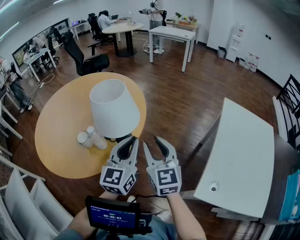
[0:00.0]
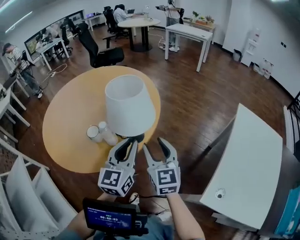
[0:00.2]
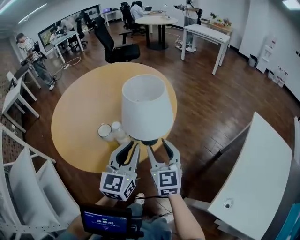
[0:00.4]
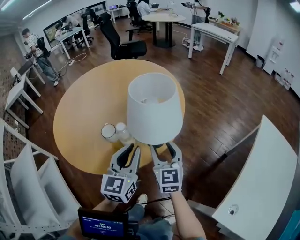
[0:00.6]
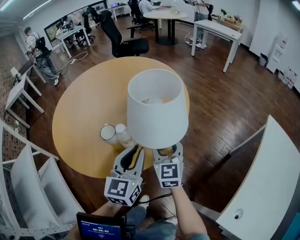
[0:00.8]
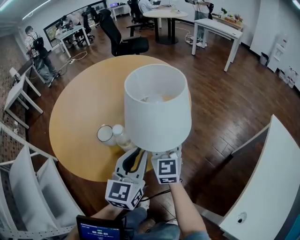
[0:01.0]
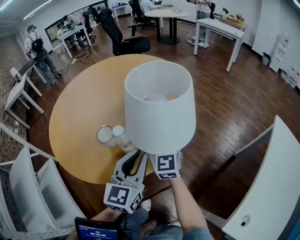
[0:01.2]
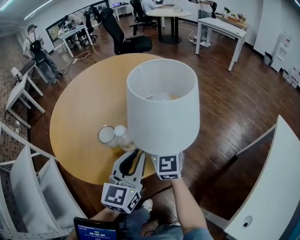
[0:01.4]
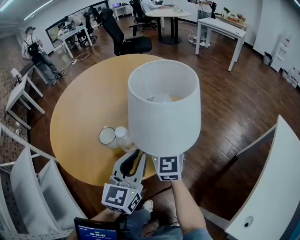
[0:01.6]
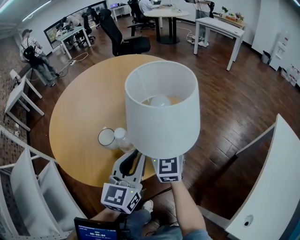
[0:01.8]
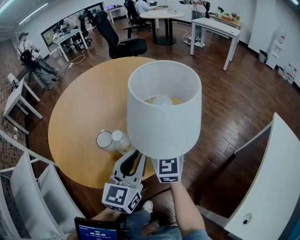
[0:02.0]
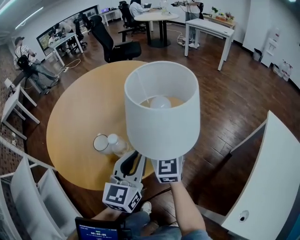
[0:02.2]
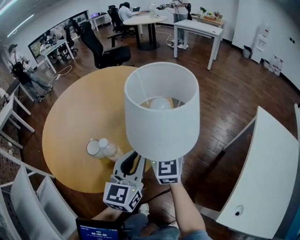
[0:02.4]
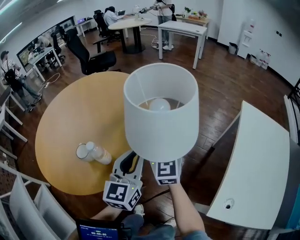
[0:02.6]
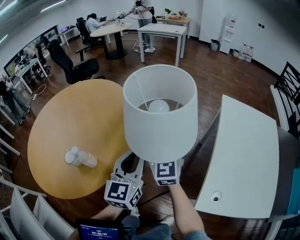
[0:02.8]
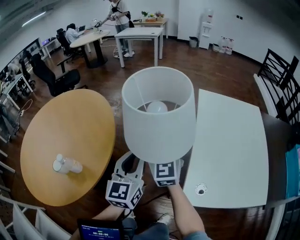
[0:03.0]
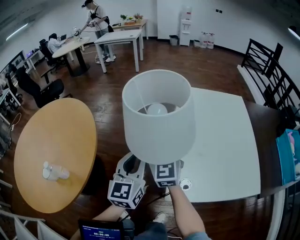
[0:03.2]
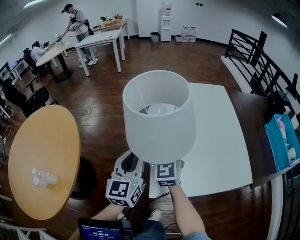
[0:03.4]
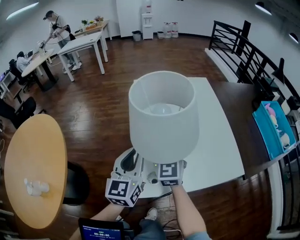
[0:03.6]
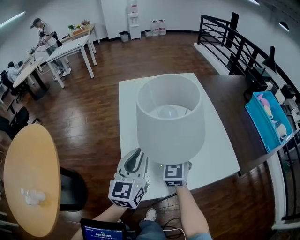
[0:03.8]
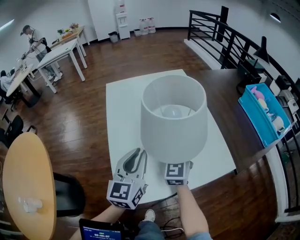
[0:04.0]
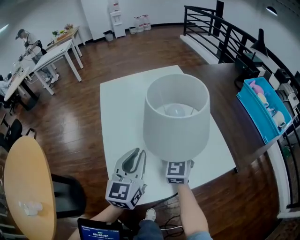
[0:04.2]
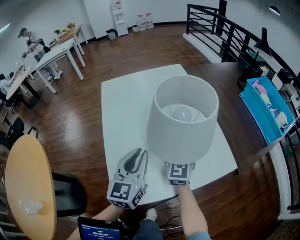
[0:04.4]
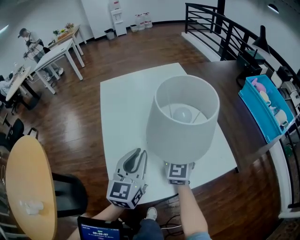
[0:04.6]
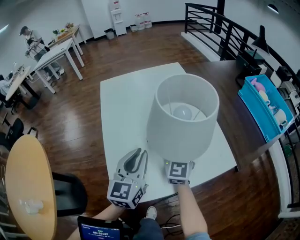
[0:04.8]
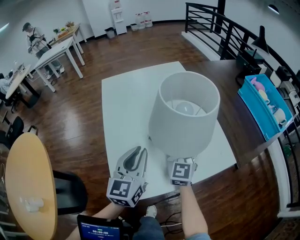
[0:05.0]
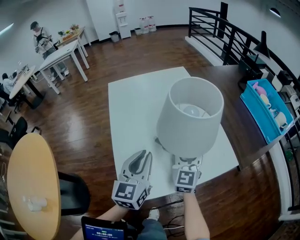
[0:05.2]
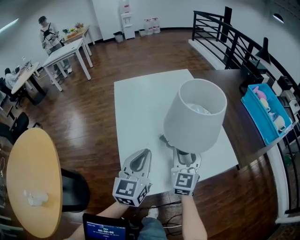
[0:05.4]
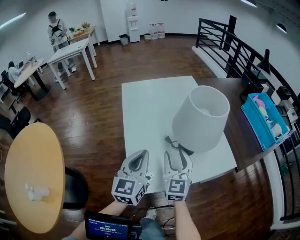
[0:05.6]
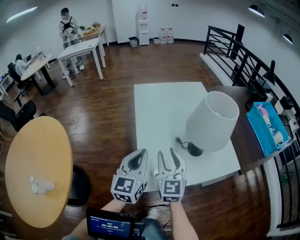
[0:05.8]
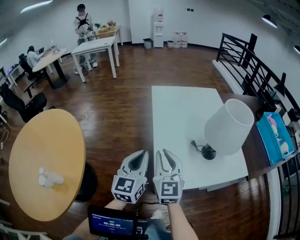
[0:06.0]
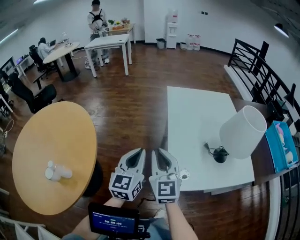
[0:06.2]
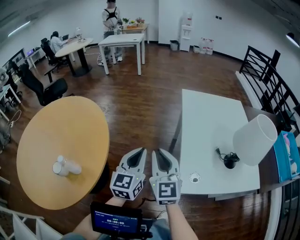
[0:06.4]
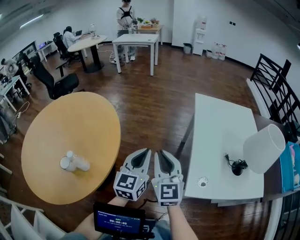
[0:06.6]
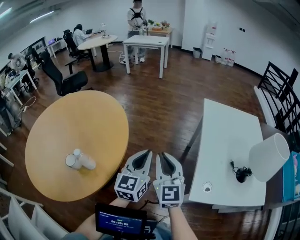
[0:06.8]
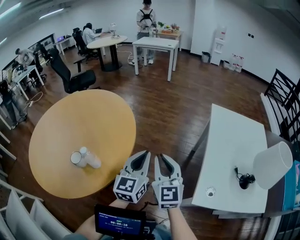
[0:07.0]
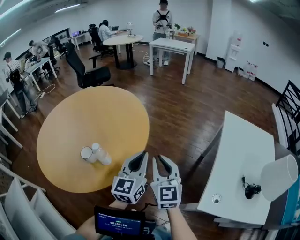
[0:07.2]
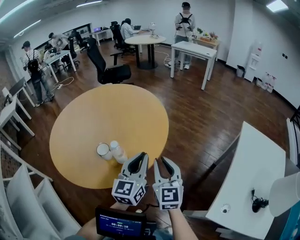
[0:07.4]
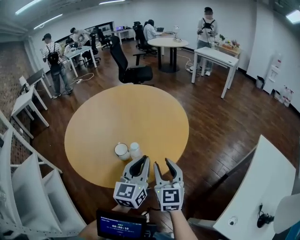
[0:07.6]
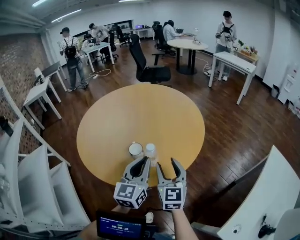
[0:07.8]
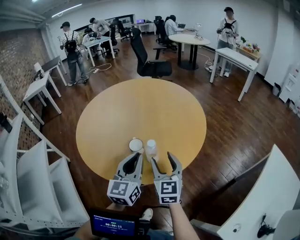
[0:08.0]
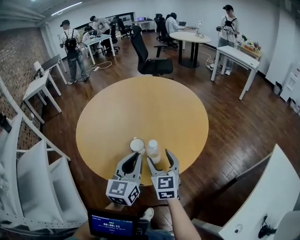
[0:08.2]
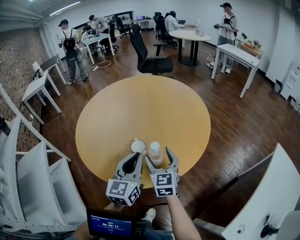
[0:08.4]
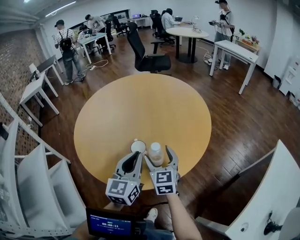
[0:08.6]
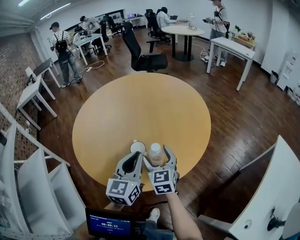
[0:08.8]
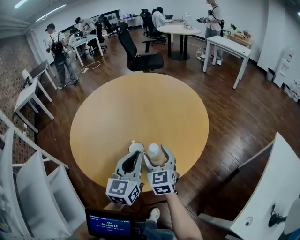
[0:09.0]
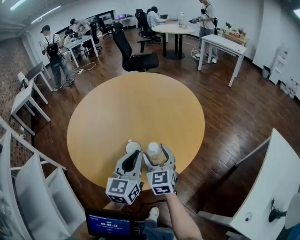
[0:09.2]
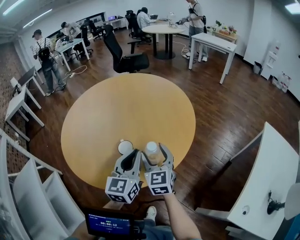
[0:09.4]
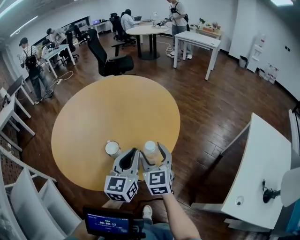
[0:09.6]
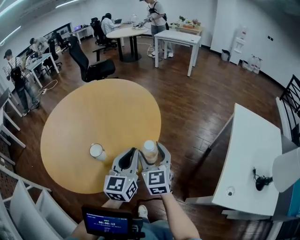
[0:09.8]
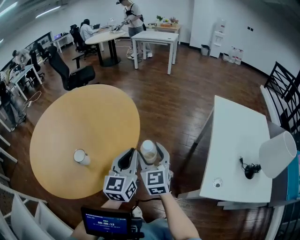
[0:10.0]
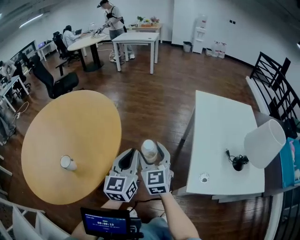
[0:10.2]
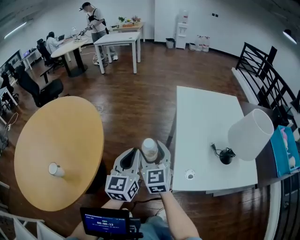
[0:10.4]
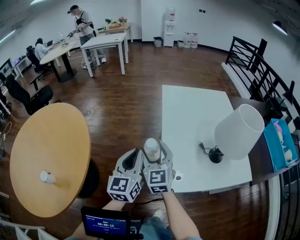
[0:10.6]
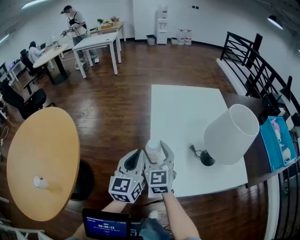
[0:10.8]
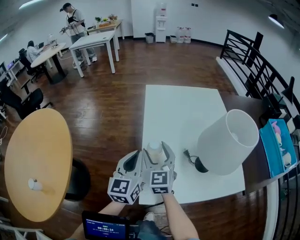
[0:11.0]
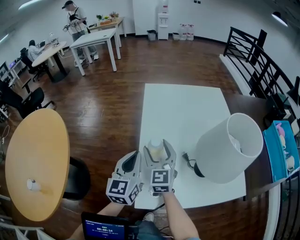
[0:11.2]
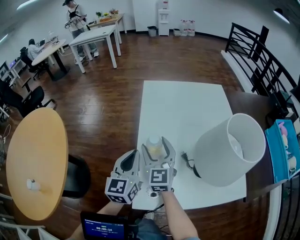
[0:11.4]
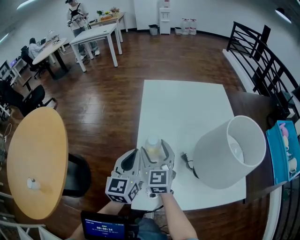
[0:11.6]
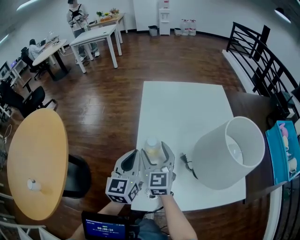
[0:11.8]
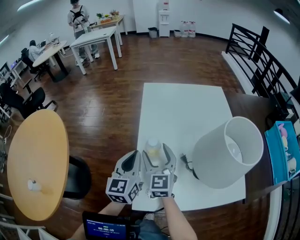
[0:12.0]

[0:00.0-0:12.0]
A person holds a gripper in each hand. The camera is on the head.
0:00.0 to 0:01.6: The right gripper is displaced forward, to the left and downward by approximately 25 cm; the left gripper is displaced to the left, downward and forward by approximately 20 cm.
0:01.6 to 0:03.0: The right gripper ends up some 35 cm from where it was, and swivels some 30 degrees; the left gripper ends up roughly 30 cm from where it was, and changes its angle by about 30 degrees.
0:03.0 to 0:04.4: The two grippers travel together, roughly 50 cm. The right gripper swivels some 40 degrees. The left gripper changes its angle by some 30 degrees.
0:04.4 to 0:06.0: The right gripper is displaced to the left, backward and upward by approximately 30 cm. The left gripper goes approximately 25 cm to the left and backward.
0:06.0 to 0:07.6: The two grippers travel together, approximately 50 cm. The right gripper swivels roughly 50 degrees. The left gripper swivels roughly 50 degrees.
0:07.6 to 0:09.0: The left gripper heads to the left and forward, covering some 15 cm, while the right gripper shifts about 20 cm to the left, forward and downward.
0:09.0 to 0:10.4: The two grippers travel together, approximately 40 cm. The right gripper rotates some 40 degrees; the left gripper rotates about 40 degrees.
0:10.4 to 0:12.0: The grippers both shift to the right and forward by about 30 cm.

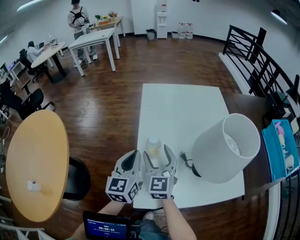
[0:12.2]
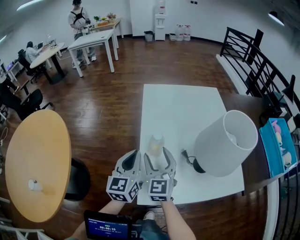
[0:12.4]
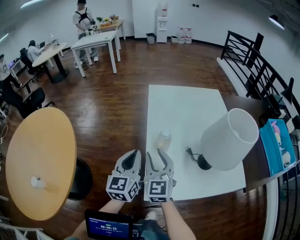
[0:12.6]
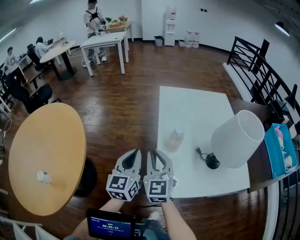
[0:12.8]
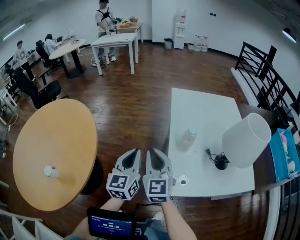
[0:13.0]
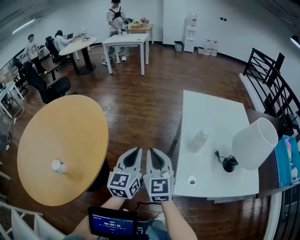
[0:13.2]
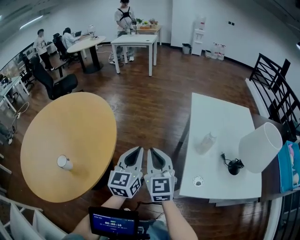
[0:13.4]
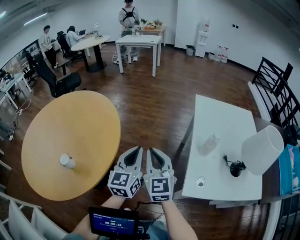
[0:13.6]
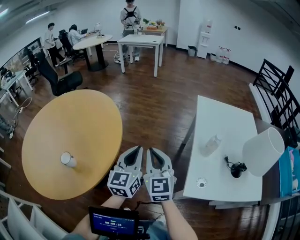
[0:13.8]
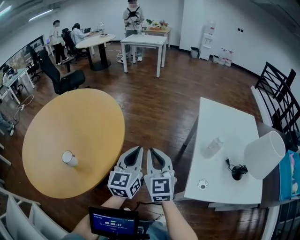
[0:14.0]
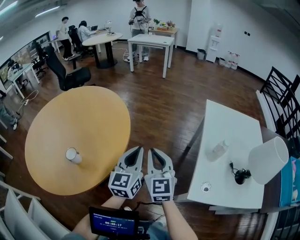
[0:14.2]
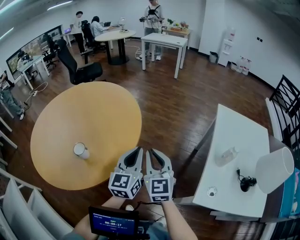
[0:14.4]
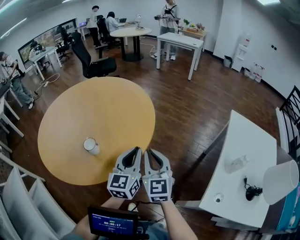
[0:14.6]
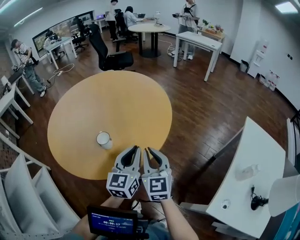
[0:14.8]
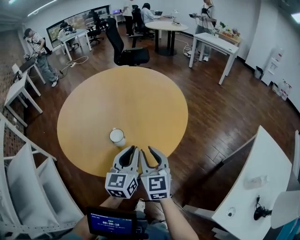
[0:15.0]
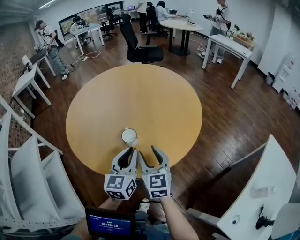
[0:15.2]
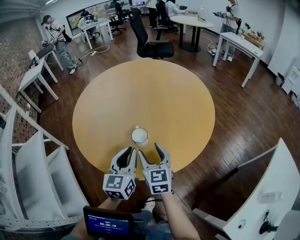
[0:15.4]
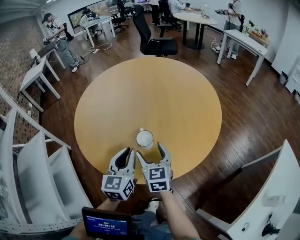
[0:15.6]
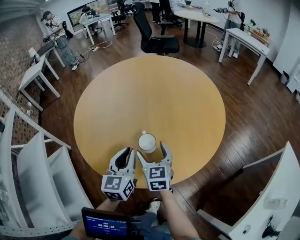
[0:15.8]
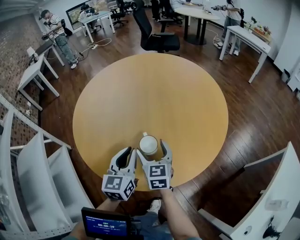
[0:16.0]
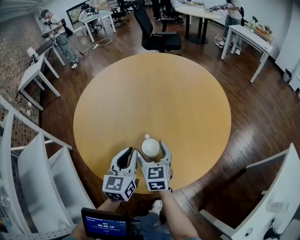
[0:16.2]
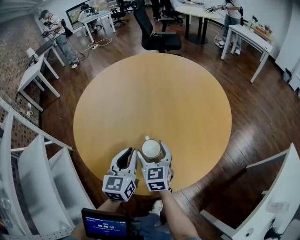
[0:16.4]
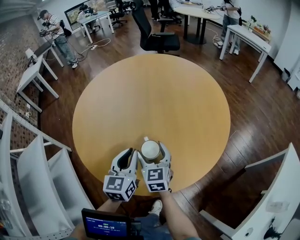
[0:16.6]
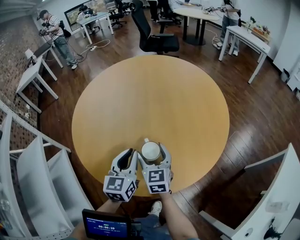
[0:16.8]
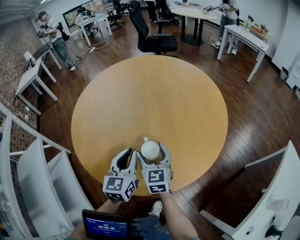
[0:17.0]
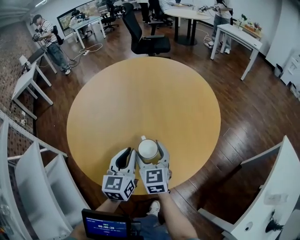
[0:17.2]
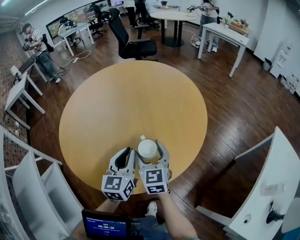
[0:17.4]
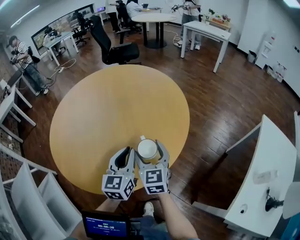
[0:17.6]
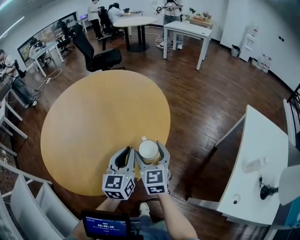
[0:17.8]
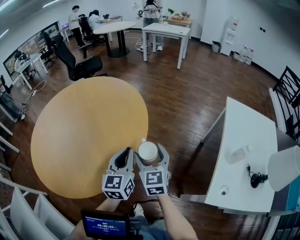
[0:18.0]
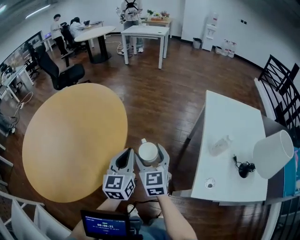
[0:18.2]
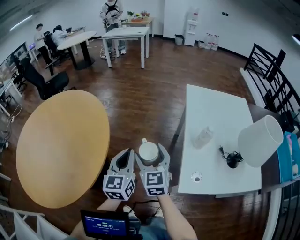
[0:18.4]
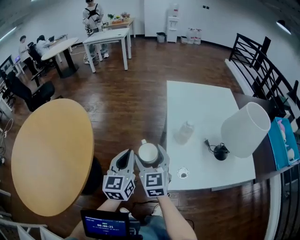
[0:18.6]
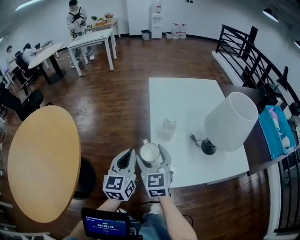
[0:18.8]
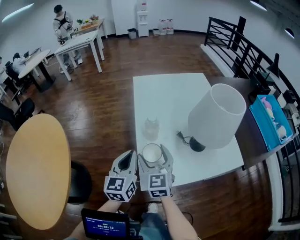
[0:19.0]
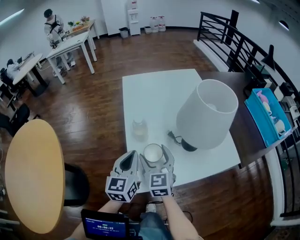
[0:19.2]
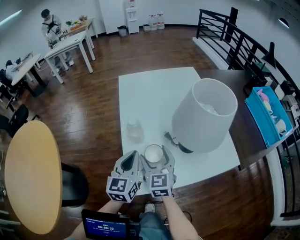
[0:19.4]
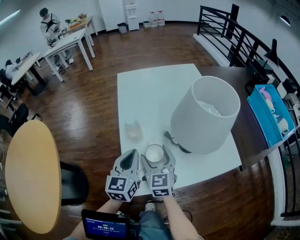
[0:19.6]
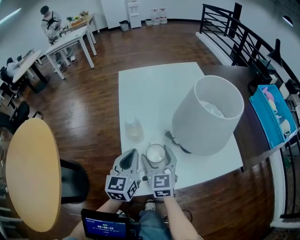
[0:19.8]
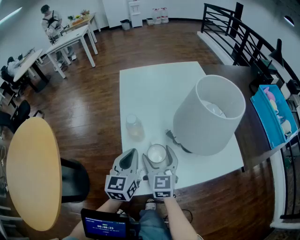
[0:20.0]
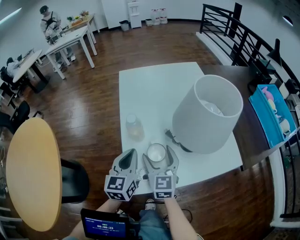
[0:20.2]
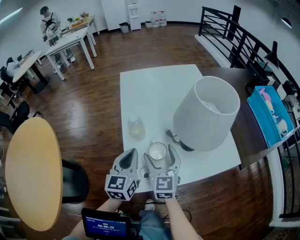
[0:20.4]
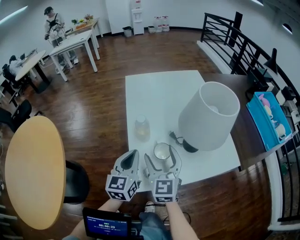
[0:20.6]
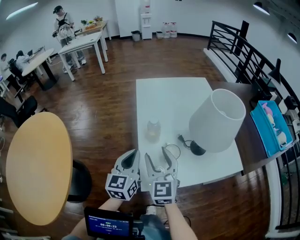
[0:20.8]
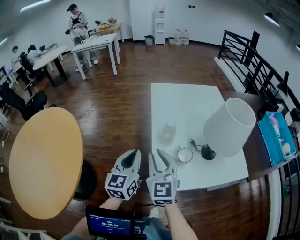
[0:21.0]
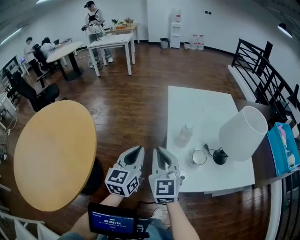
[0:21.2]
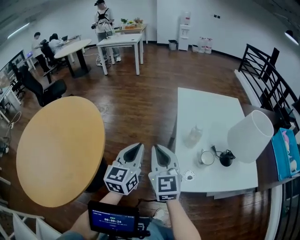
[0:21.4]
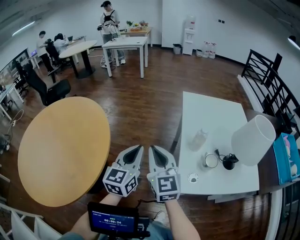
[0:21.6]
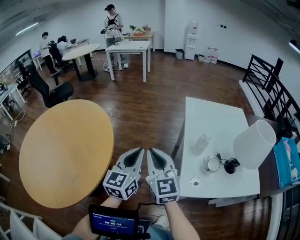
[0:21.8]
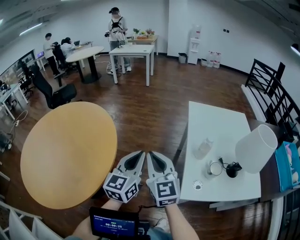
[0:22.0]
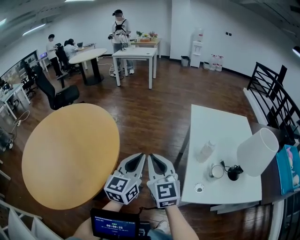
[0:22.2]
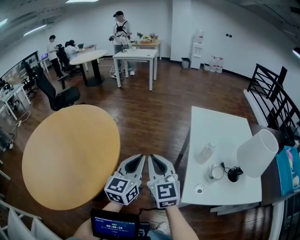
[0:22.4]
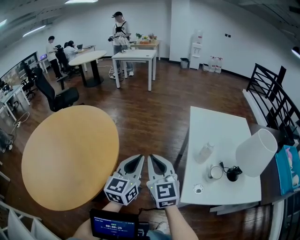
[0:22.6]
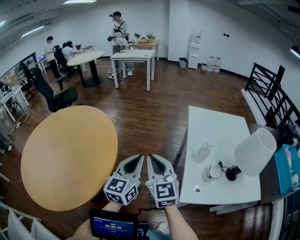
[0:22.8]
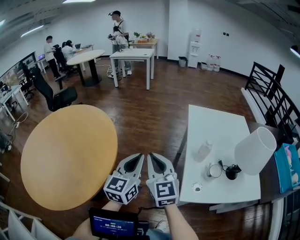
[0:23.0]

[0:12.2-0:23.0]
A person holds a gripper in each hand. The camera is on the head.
0:12.2 to 0:13.8: Both grippers travel together to the left, roughly 30 cm. The right gripper turns by some 20 degrees, and closes up.
0:13.8 to 0:15.2: The left gripper moves roughly 35 cm, and changes its angle by approximately 40 degrees. Meanwhile the right gripper shifts by about 35 cm, turns by about 40 degrees, and opens.
0:15.2 to 0:16.8: Both grippers move forward, to the left and downward, about 15 cm. The right gripper opens.
0:16.8 to 0:18.4: Both grippers are carried about 50 cm. The left gripper turns by some 40 degrees; the right gripper turns by roughly 50 degrees.
0:18.4 to 0:20.0: Both grippers travel together to the right, about 35 cm. The left gripper changes its angle by roughly 20 degrees. Meanwhile the right gripper swivels approximately 30 degrees.
0:20.0 to 0:21.4: The two grippers go approximately 30 cm to the left and upward. The right gripper swivels approximately 20 degrees, and closes up.
0:21.4 to 0:23.0: Both grippers travel together to the left, roughly 10 cm.

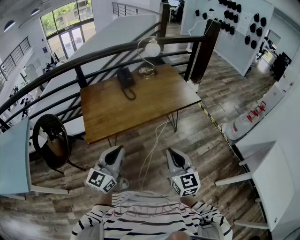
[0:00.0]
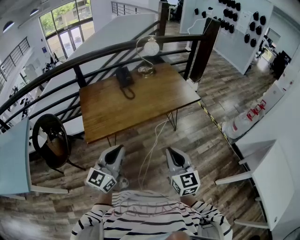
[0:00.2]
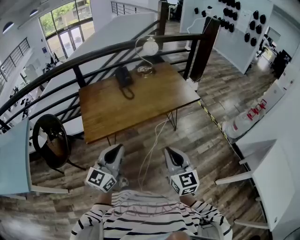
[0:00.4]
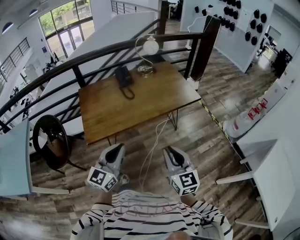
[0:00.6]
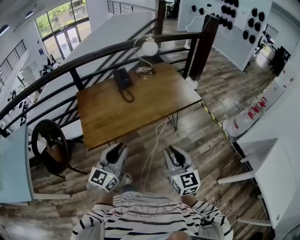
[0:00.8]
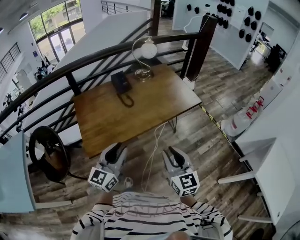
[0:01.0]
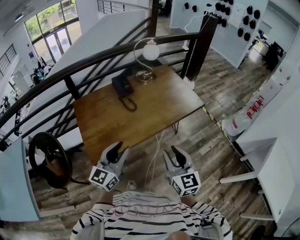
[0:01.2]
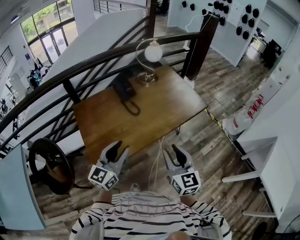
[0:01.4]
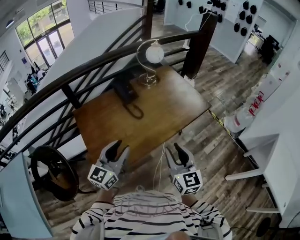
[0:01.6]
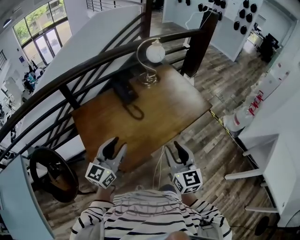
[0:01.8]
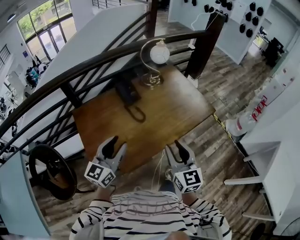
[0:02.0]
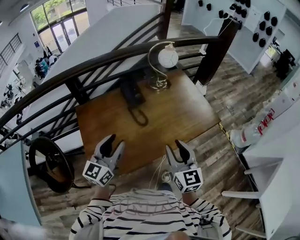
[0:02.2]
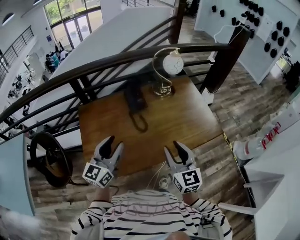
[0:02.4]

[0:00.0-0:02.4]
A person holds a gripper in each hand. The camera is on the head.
0:00.0 to 0:01.2: The two grippers go roughly 20 cm forward and to the left. The right gripper opens up; the left gripper opens up.
0:01.2 to 0:02.4: Both grippers travel together forward, some 25 cm.
